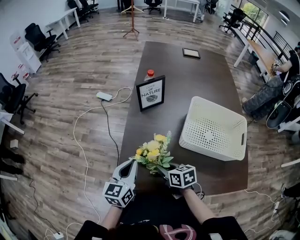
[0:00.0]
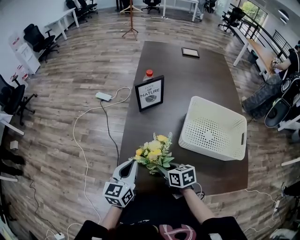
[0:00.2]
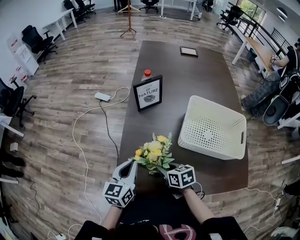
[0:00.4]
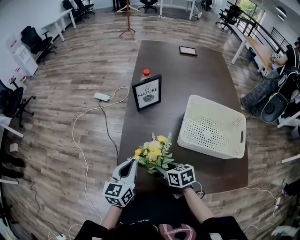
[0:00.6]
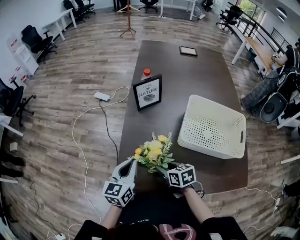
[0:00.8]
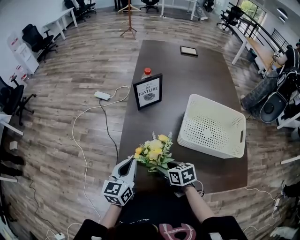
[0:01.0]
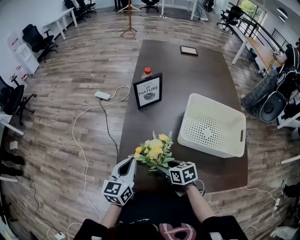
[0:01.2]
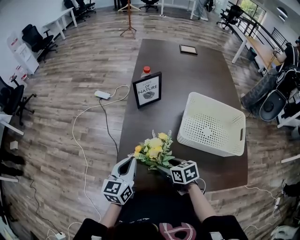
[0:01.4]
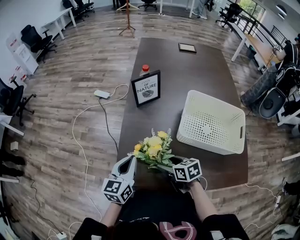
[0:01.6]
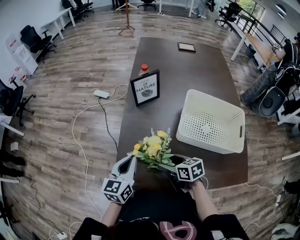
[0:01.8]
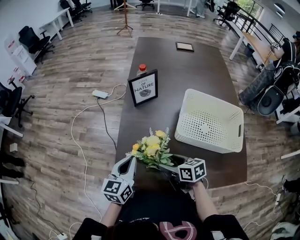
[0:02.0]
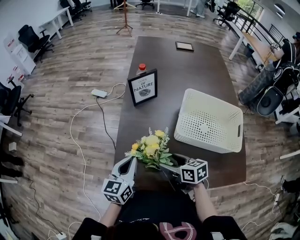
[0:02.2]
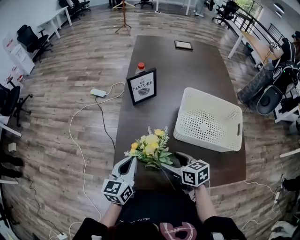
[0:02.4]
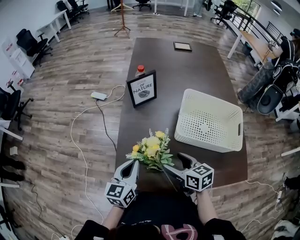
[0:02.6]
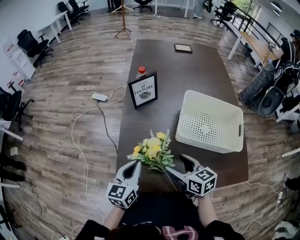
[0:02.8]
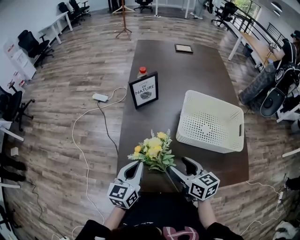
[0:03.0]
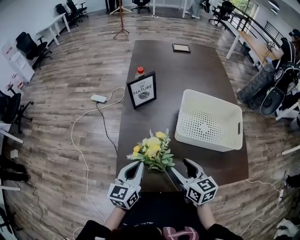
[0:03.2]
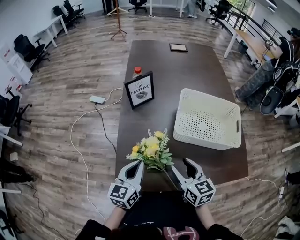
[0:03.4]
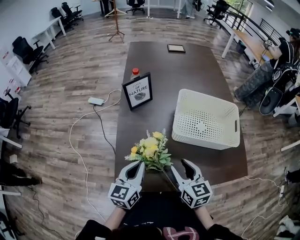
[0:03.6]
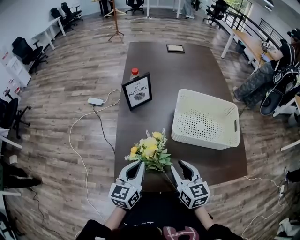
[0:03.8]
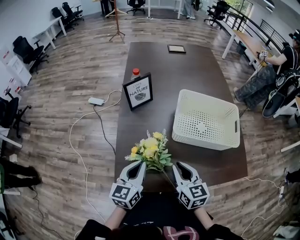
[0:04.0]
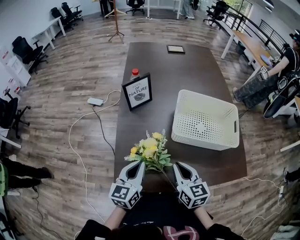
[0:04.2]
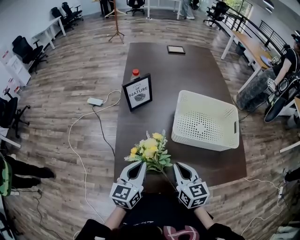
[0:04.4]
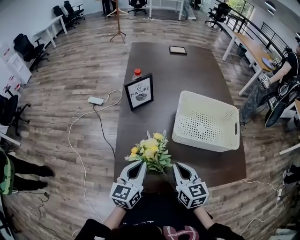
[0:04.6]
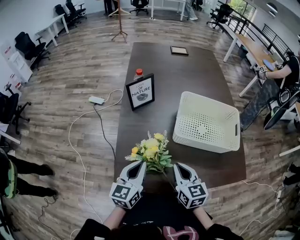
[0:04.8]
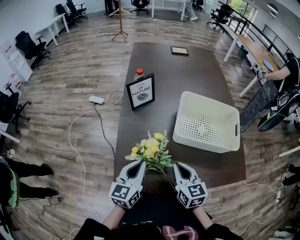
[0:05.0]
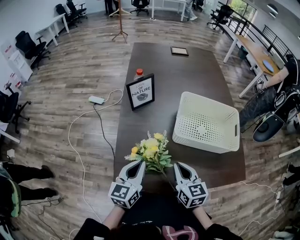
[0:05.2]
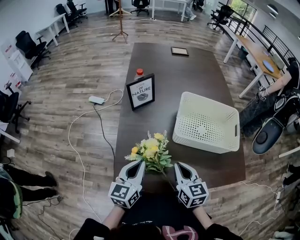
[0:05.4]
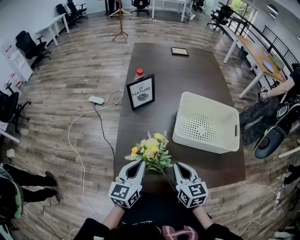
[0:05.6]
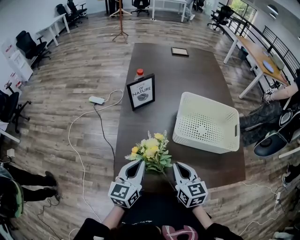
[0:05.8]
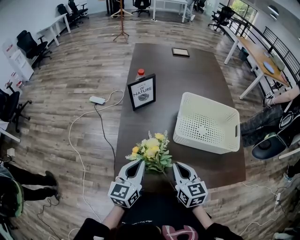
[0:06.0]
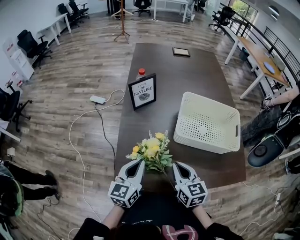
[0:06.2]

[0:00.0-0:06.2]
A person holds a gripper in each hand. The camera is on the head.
0:00.0 to 0:01.6: The right gripper opens its fingers.
0:01.6 to 0:03.2: The right gripper is displaced upward by approximately 10 cm, and turns by approximately 30 degrees.
0:03.2 to 0:04.6: The right gripper closes its fingers.
0:04.6 to 0:06.2: Neither gripper changes place.

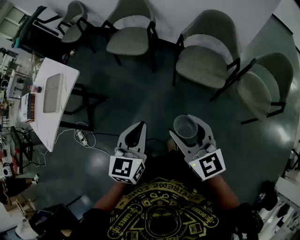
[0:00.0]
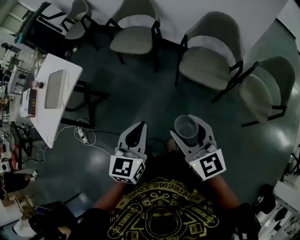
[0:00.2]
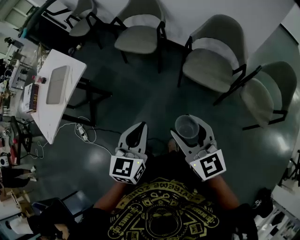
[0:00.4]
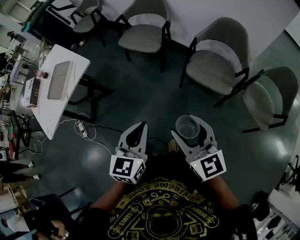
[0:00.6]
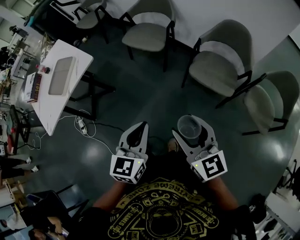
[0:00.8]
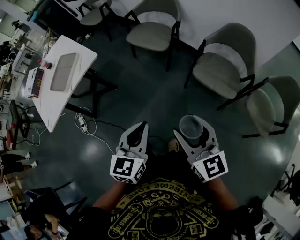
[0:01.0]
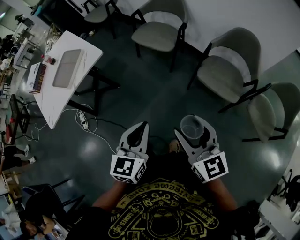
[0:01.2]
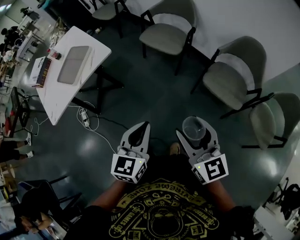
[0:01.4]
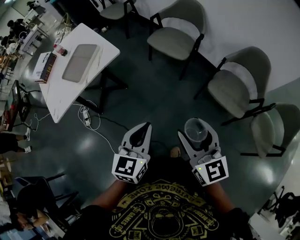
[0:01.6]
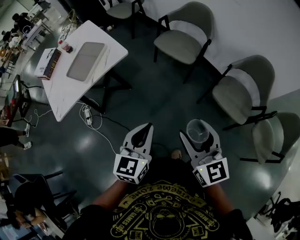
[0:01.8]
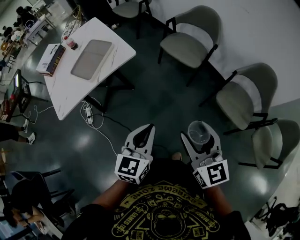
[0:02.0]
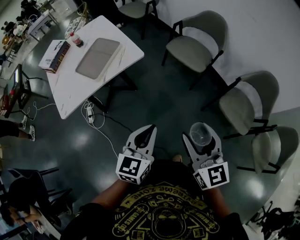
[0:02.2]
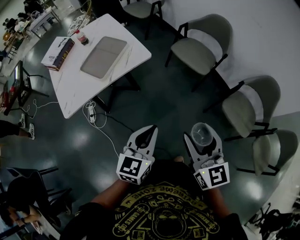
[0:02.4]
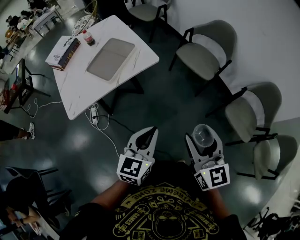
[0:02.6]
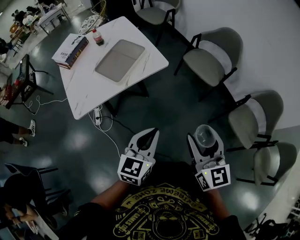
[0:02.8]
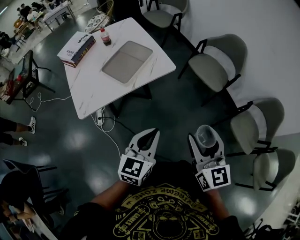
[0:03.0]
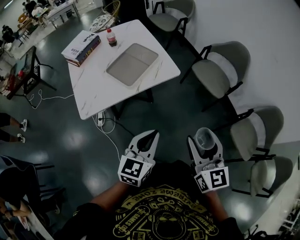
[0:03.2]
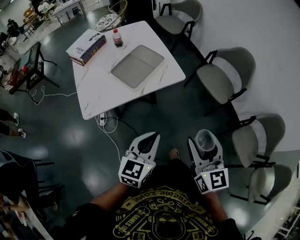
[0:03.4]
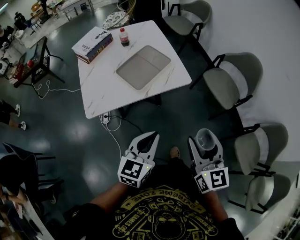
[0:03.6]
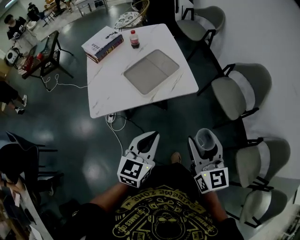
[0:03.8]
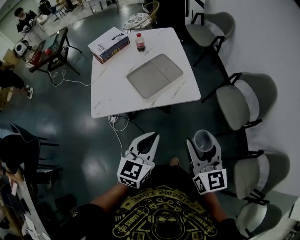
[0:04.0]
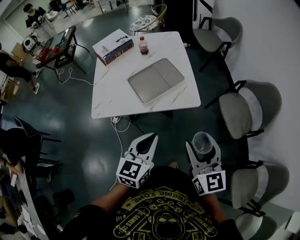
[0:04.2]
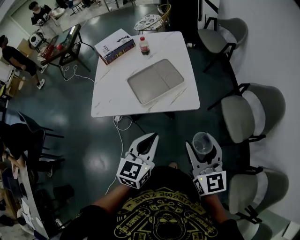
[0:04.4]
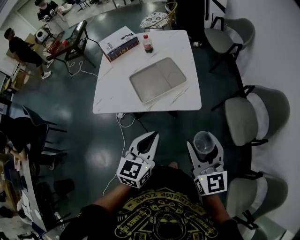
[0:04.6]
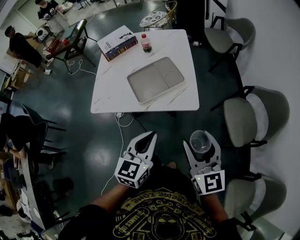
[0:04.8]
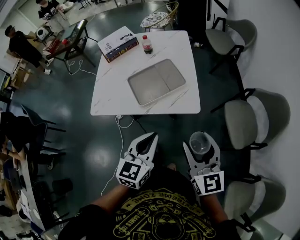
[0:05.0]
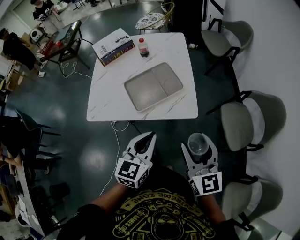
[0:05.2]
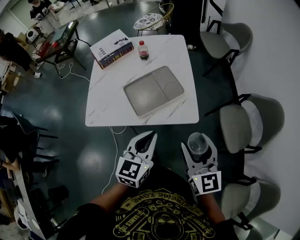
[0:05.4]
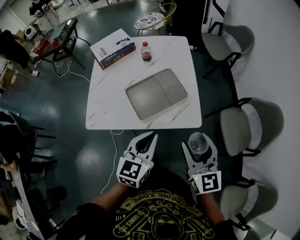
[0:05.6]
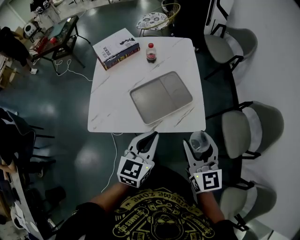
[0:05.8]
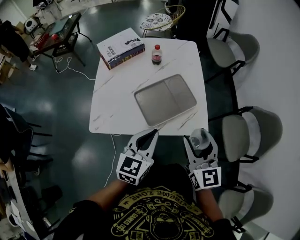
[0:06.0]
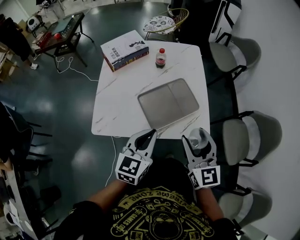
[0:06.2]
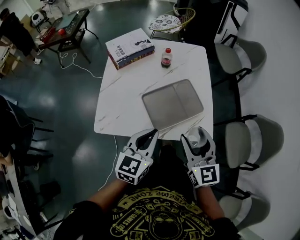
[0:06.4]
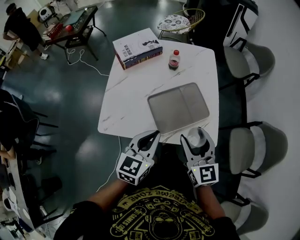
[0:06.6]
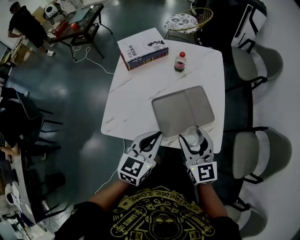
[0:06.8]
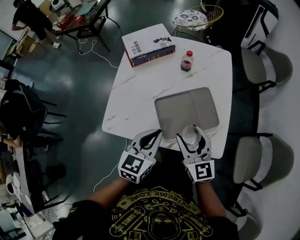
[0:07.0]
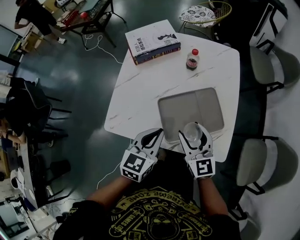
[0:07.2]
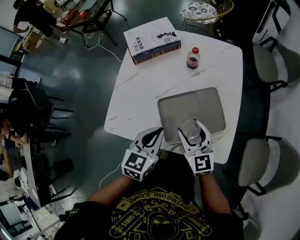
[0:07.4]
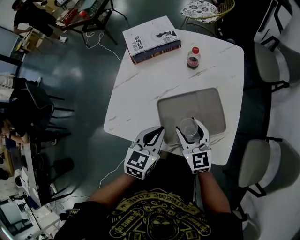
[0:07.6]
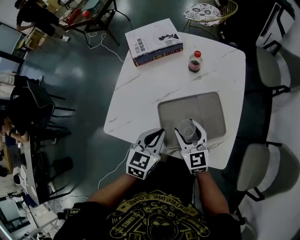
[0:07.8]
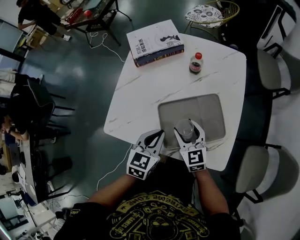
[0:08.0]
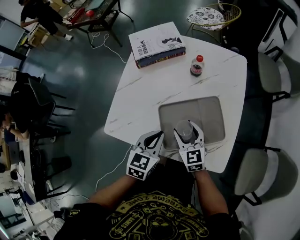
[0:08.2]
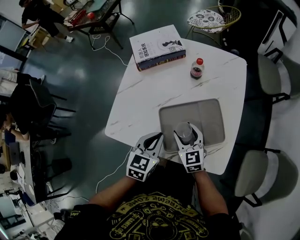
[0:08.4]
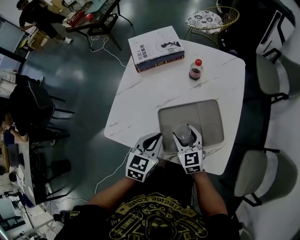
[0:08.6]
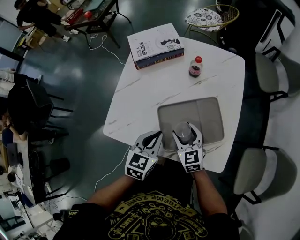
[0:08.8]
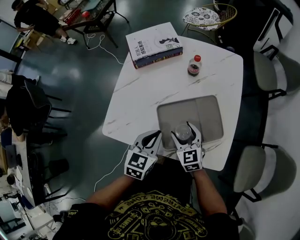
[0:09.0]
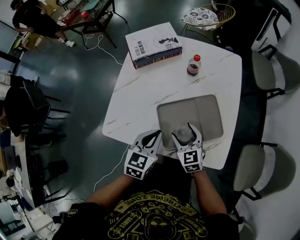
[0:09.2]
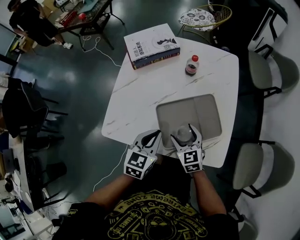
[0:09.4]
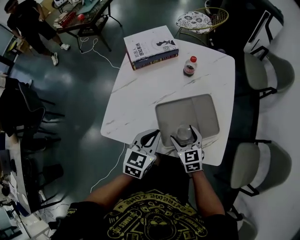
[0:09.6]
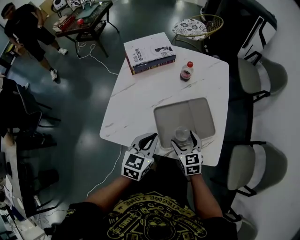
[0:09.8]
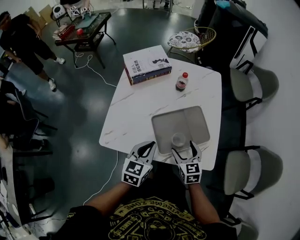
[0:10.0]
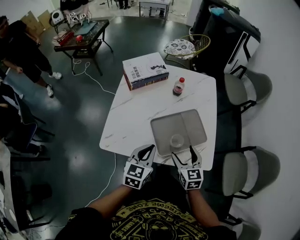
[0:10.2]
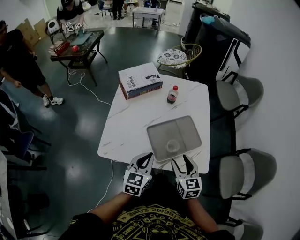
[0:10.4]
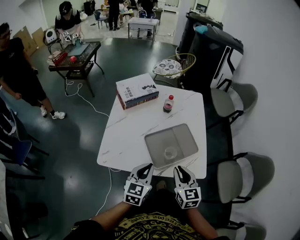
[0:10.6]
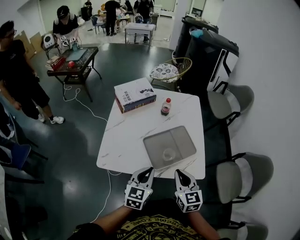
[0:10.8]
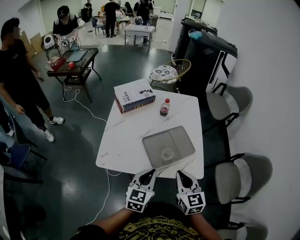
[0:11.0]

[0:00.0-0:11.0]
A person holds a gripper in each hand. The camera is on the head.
0:00.0 to 0:01.6: Both grippers travel together to the left, some 15 cm.
0:01.6 to 0:03.2: Both grippers travel together to the left, roughly 25 cm.
0:03.2 to 0:04.8: The right gripper shifts by roughly 20 cm, and changes its angle by approximately 30 degrees. Meanwhile the left gripper shifts by roughly 15 cm, and swivels about 30 degrees.
0:04.8 to 0:06.2: The two grippers go roughly 20 cm forward and to the left.
0:06.2 to 0:07.8: The right gripper moves downward, forward and to the left, some 25 cm, and changes its angle by about 30 degrees. Meanwhile the left gripper is displaced downward and forward by some 15 cm.
0:07.8 to 0:09.4: The right gripper heads downward, covering approximately 5 cm.
0:09.4 to 0:11.0: The left gripper shifts some 15 cm backward and upward. The right gripper goes about 25 cm upward and backward, changes its angle by some 20 degrees, and closes.

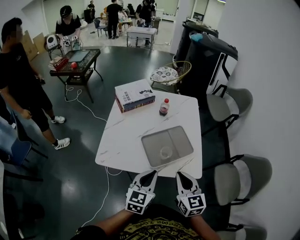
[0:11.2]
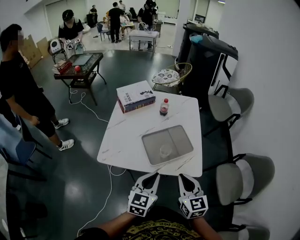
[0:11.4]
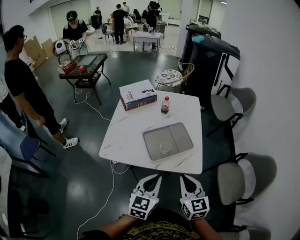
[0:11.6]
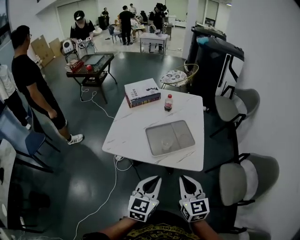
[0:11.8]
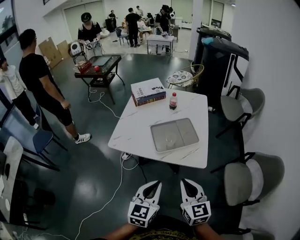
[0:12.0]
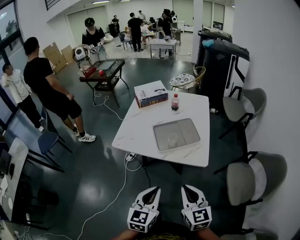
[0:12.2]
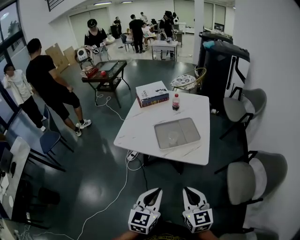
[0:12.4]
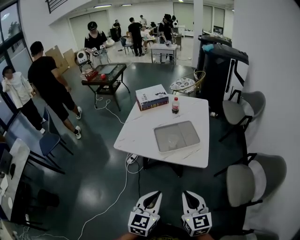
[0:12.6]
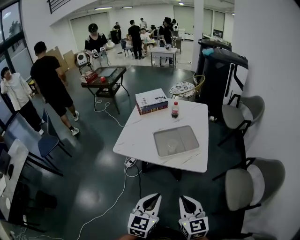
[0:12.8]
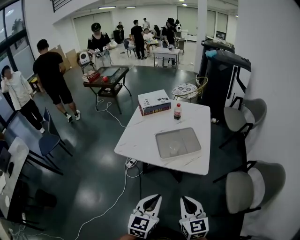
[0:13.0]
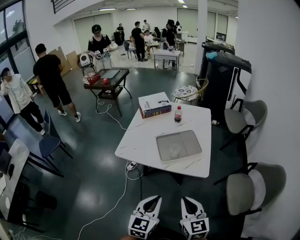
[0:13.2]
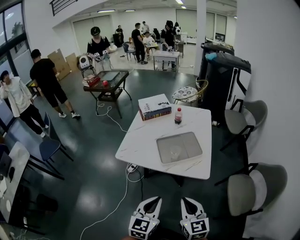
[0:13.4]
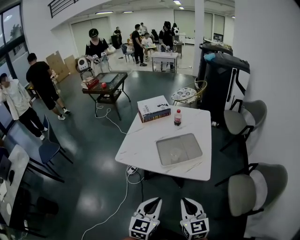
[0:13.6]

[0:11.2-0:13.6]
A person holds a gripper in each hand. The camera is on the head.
0:11.2 to 0:12.4: Both grippers travel together backward, some 25 cm.
0:12.4 to 0:13.6: There are only small adjustments of the grippers.

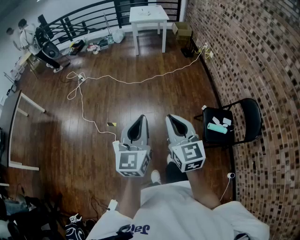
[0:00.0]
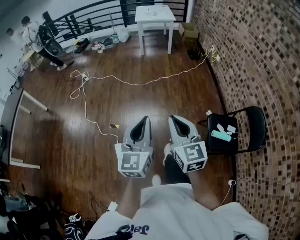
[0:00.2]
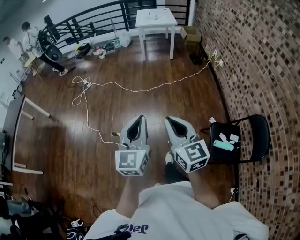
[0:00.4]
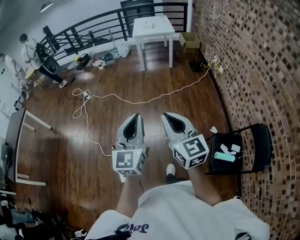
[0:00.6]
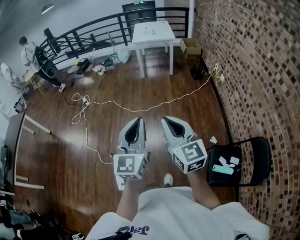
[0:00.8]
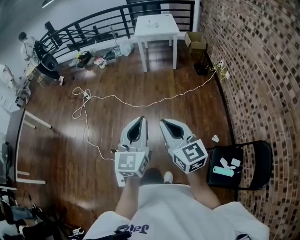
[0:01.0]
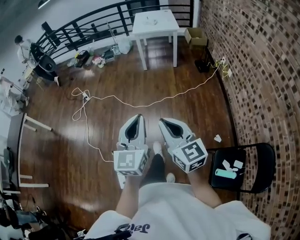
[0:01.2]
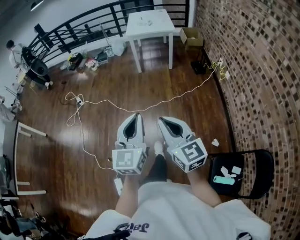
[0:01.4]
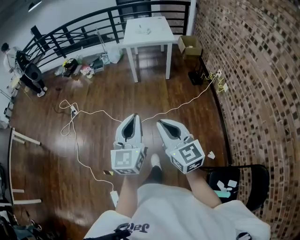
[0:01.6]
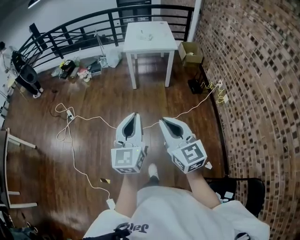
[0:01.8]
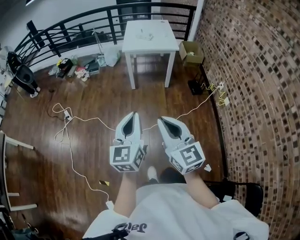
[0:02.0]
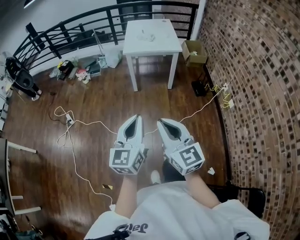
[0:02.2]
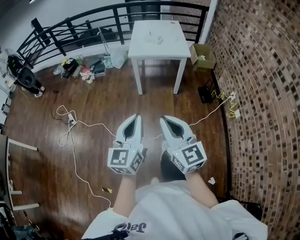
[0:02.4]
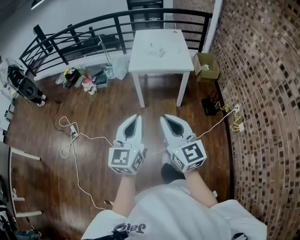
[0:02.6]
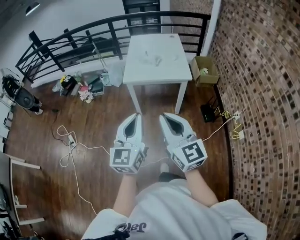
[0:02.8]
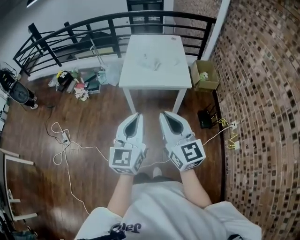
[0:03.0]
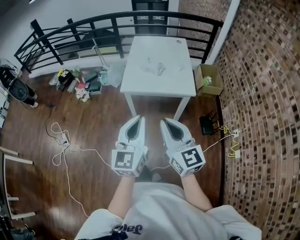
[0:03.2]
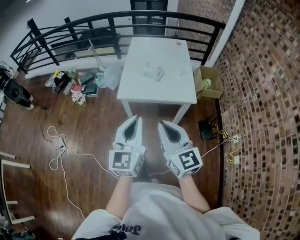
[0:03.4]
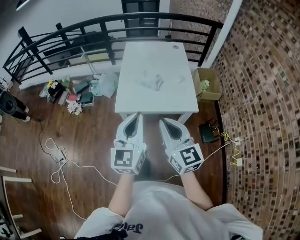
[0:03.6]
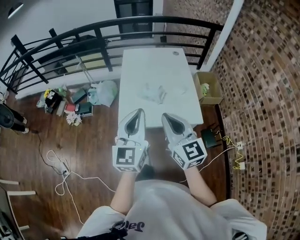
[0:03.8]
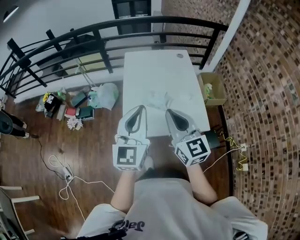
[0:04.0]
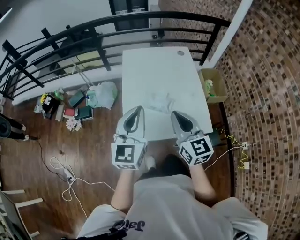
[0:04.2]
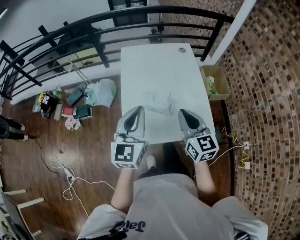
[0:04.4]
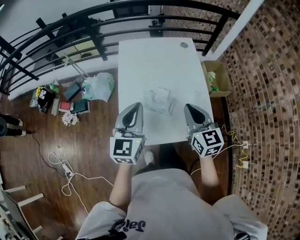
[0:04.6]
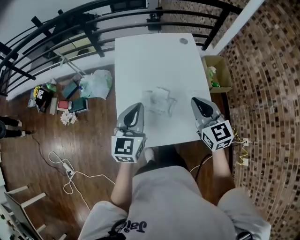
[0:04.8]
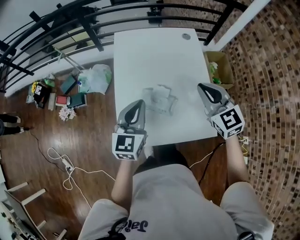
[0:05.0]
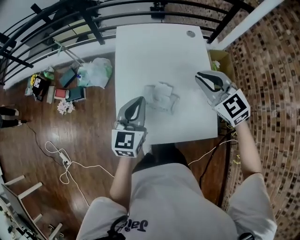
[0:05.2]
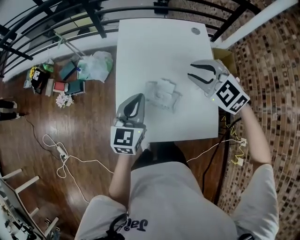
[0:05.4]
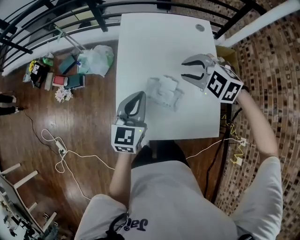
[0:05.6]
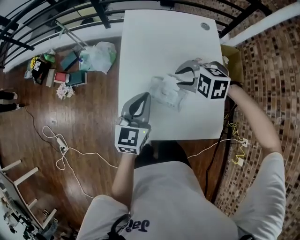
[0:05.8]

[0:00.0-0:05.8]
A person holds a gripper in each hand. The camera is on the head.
0:00.0 to 0:01.4: Both grippers are carried forward, about 50 cm.
0:01.4 to 0:02.8: Both grippers are carried forward, approximately 70 cm.
0:02.8 to 0:04.4: Both grippers are carried forward, roughly 60 cm. The right gripper changes its angle by approximately 20 degrees.
0:04.4 to 0:05.8: The left gripper is displaced downward by about 15 cm. Meanwhile the right gripper shifts by approximately 25 cm, tips its fingers downward by some 50 degrees, and opens its fingers.
